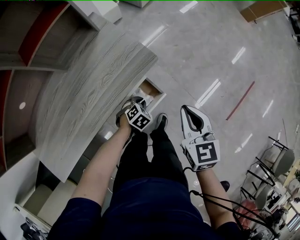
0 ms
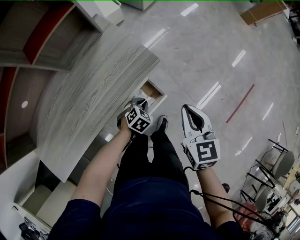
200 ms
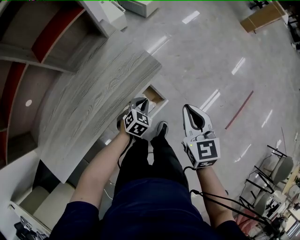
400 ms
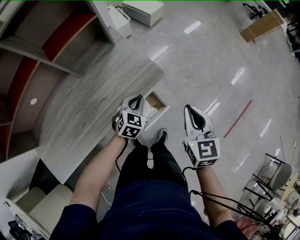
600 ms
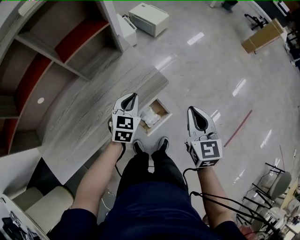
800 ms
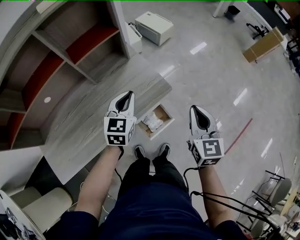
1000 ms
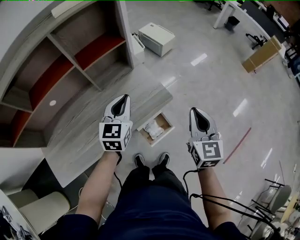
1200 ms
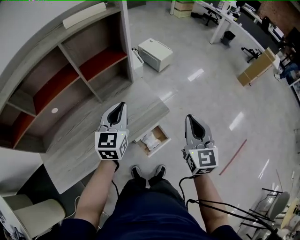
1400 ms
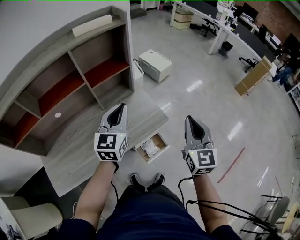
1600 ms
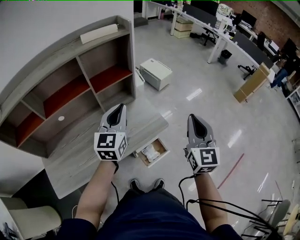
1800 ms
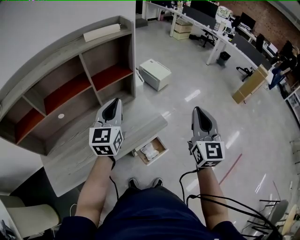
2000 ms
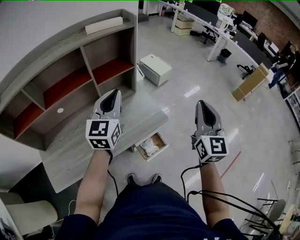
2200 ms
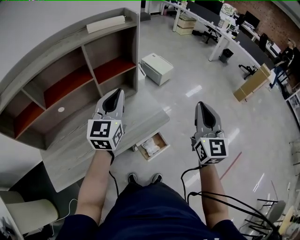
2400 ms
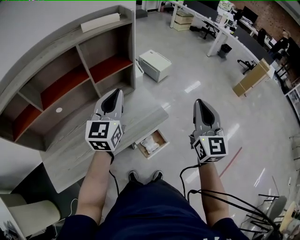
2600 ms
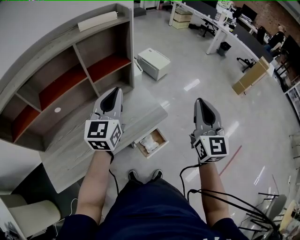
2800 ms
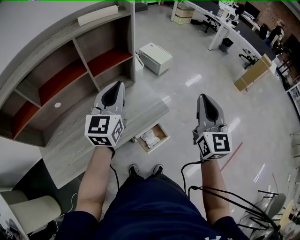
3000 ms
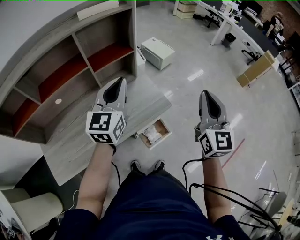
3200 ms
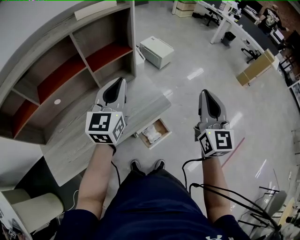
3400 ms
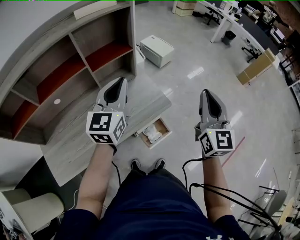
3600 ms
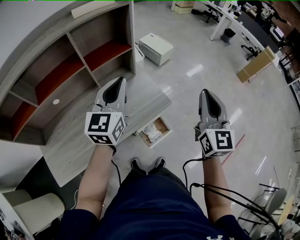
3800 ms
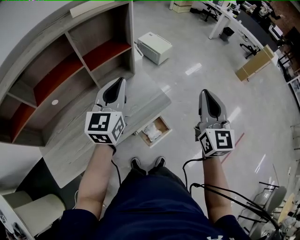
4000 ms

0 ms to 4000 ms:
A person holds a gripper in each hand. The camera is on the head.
0 ms to 1400 ms: The right gripper heads upward, covering about 20 cm, and changes its angle by about 30 degrees, while the left gripper is displaced upward by about 40 cm, and angles its fingers upward, by some 60 degrees.
1400 ms to 2600 ms: Both grippers move upward, roughly 10 cm.
2600 ms to 4000 ms: The grippers move only a little.

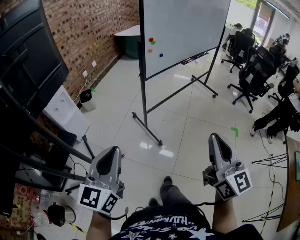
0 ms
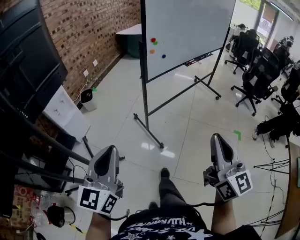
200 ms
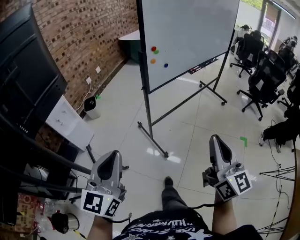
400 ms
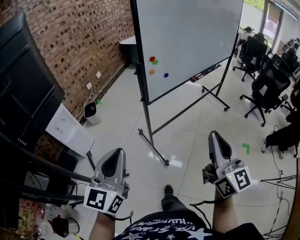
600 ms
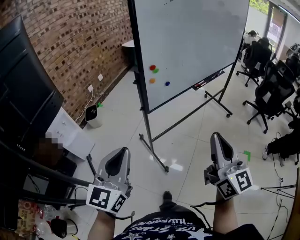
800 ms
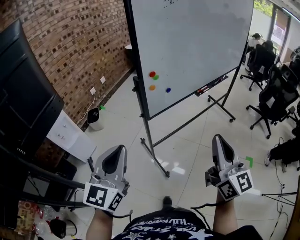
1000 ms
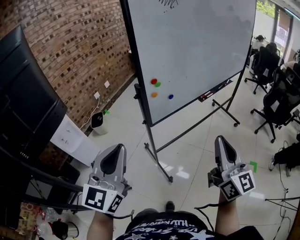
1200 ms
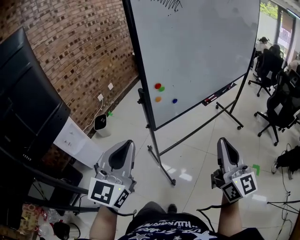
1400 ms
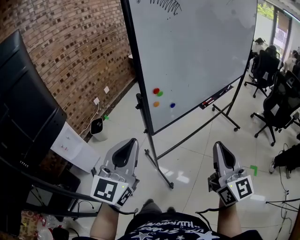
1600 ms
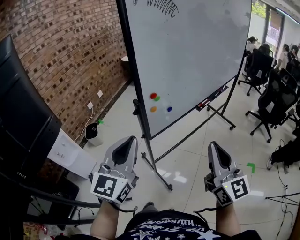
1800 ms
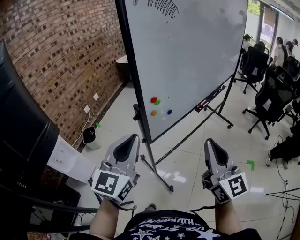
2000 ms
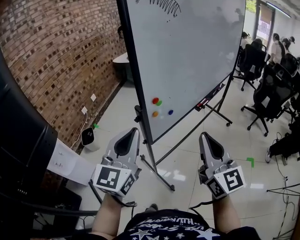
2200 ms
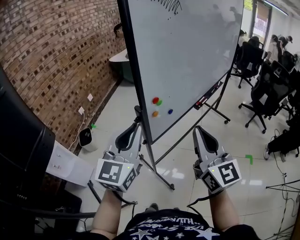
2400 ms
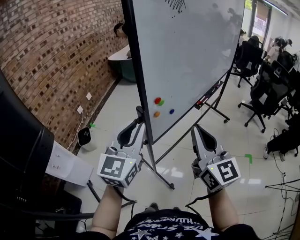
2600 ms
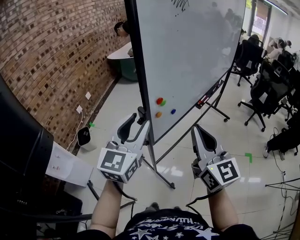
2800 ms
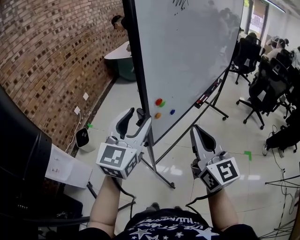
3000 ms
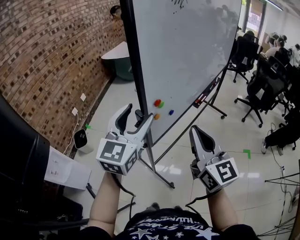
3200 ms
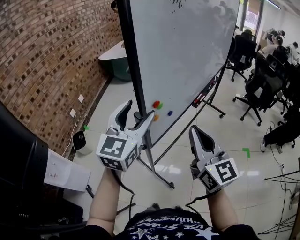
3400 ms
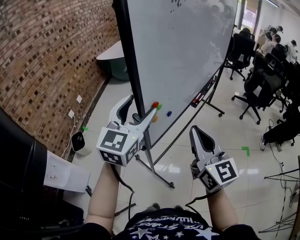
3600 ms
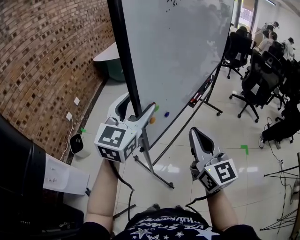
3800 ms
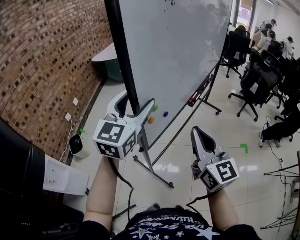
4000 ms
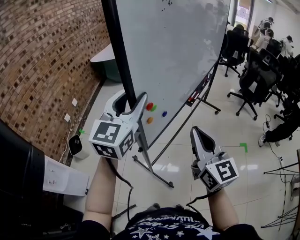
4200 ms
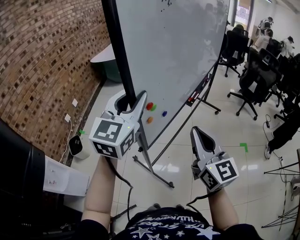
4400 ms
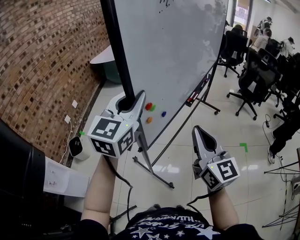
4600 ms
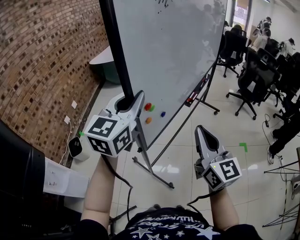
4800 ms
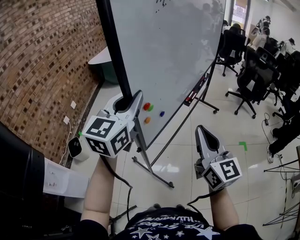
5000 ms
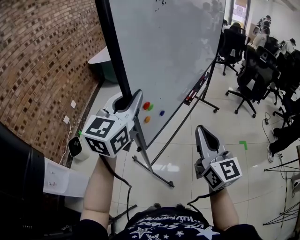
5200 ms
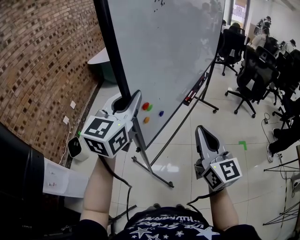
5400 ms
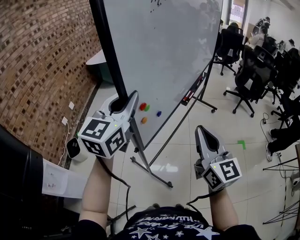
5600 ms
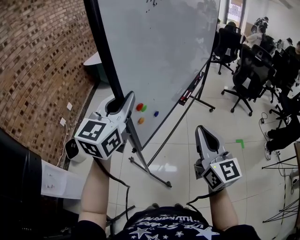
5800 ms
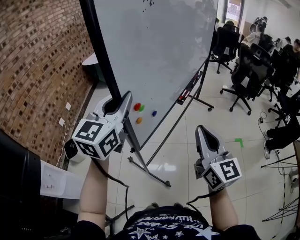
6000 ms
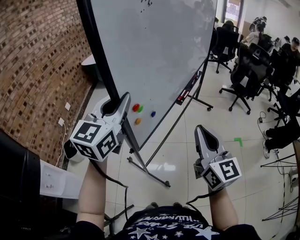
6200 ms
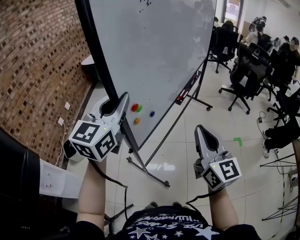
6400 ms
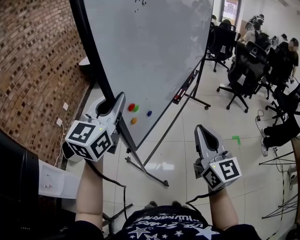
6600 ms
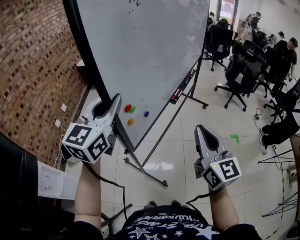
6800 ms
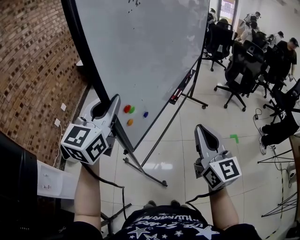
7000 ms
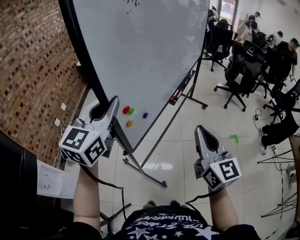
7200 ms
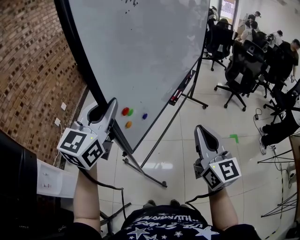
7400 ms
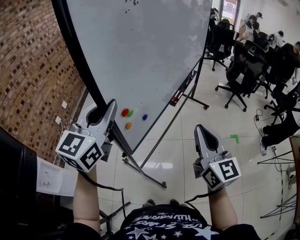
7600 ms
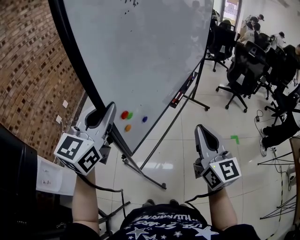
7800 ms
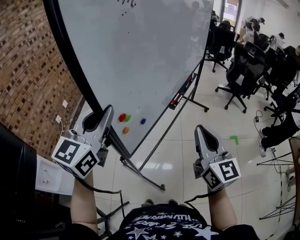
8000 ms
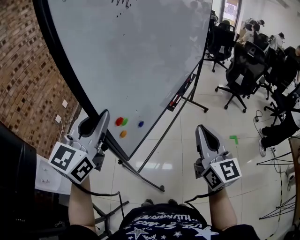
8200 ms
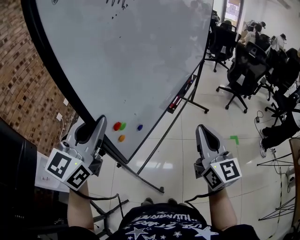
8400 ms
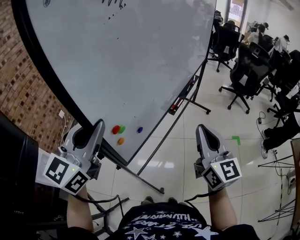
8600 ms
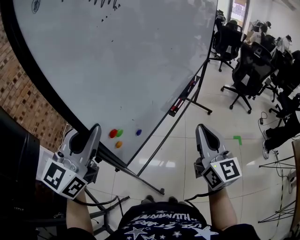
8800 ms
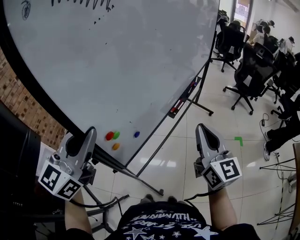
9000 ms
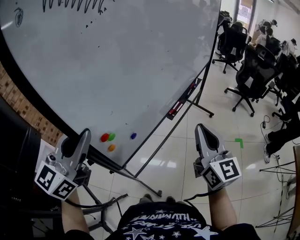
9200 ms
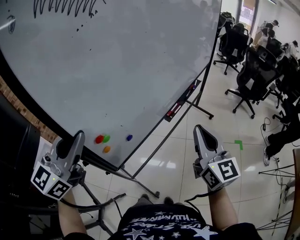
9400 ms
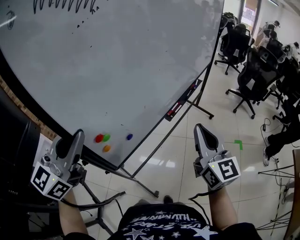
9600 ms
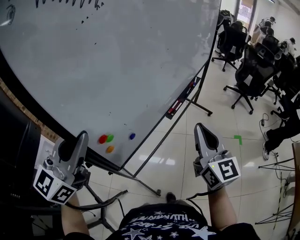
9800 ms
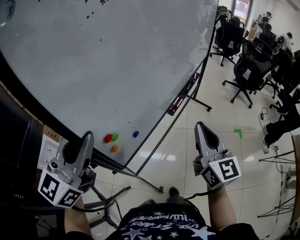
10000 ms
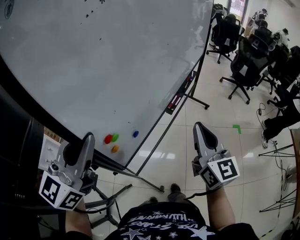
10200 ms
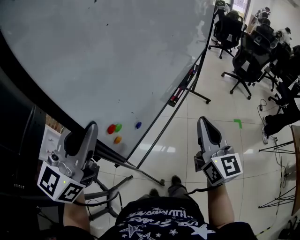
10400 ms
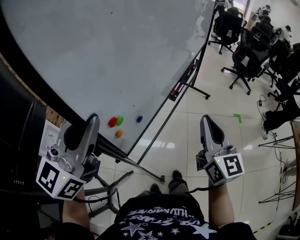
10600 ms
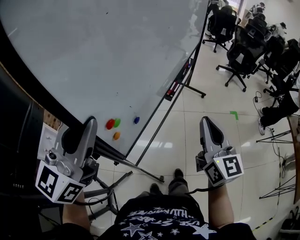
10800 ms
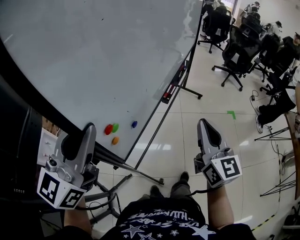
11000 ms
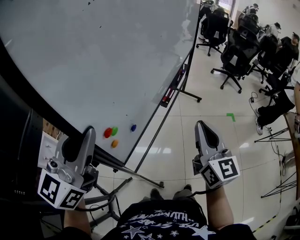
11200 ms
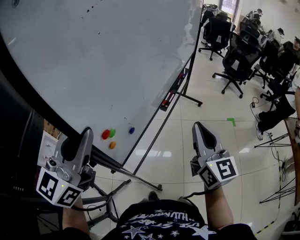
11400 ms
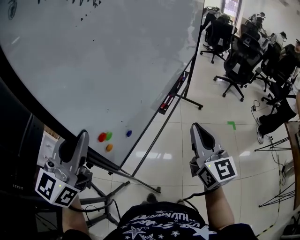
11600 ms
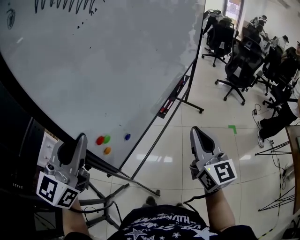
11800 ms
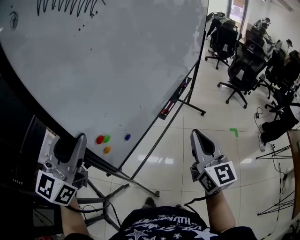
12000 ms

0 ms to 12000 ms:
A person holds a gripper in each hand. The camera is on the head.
0 ms to 1600 ms: The two grippers go some 30 cm forward.
1600 ms to 3000 ms: The left gripper is displaced forward by approximately 15 cm, and opens its fingers. Meanwhile the right gripper heads to the left and forward, covering approximately 15 cm.
3000 ms to 4400 ms: The left gripper goes roughly 5 cm forward.
4400 ms to 6000 ms: The grippers move only a little.
6000 ms to 7600 ms: The left gripper moves backward, about 5 cm.
7600 ms to 9000 ms: The left gripper heads backward, covering some 20 cm, while the right gripper goes roughly 5 cm backward.
9000 ms to 10400 ms: The right gripper changes place by roughly 5 cm.
10400 ms to 12000 ms: The left gripper opens up.

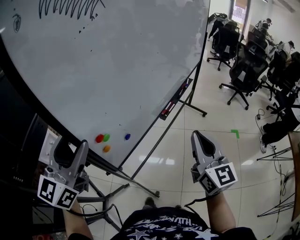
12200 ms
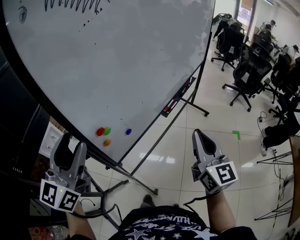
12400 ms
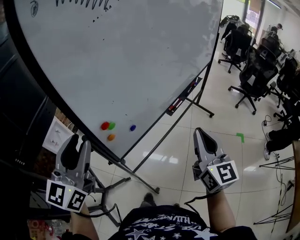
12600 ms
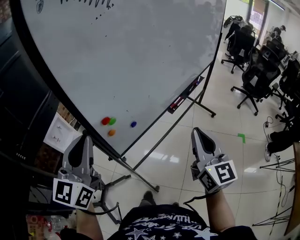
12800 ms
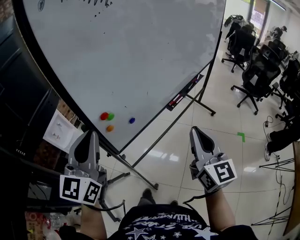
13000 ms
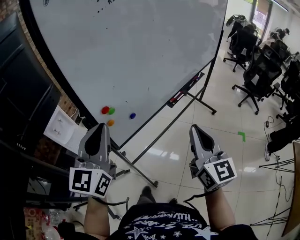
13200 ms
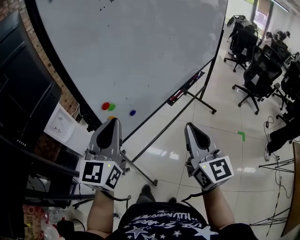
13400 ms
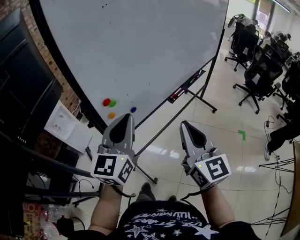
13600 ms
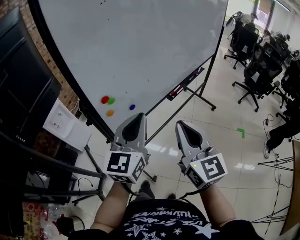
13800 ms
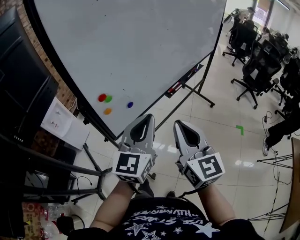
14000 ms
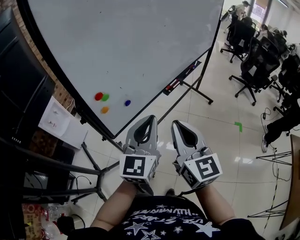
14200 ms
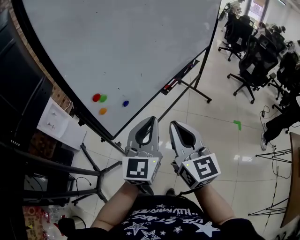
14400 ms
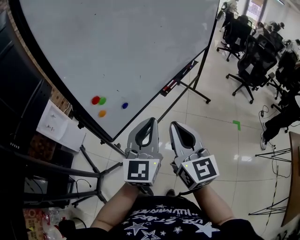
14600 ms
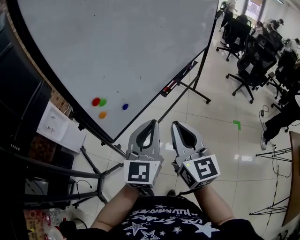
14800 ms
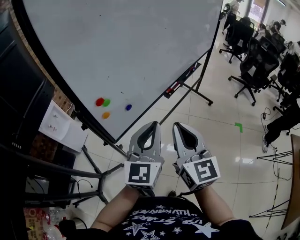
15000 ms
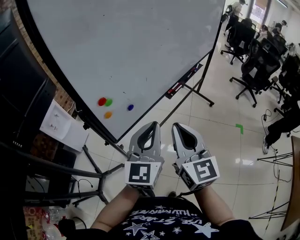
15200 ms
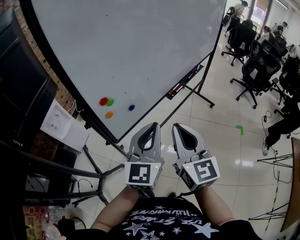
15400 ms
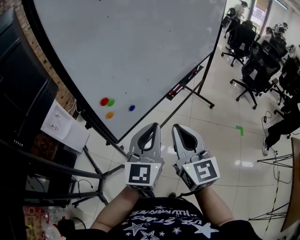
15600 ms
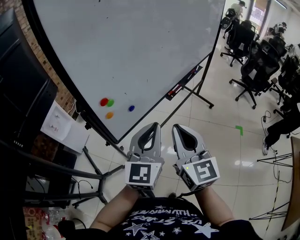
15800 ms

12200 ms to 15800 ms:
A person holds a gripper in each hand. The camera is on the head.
12200 ms to 14000 ms: The left gripper travels to the right and downward by approximately 20 cm, and closes. The right gripper moves to the left, about 5 cm.
14000 ms to 15800 ms: The grippers move only a little.

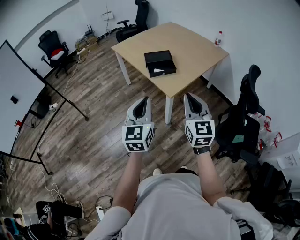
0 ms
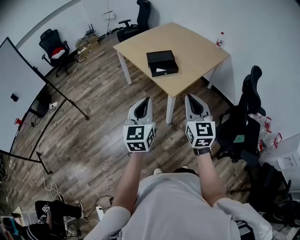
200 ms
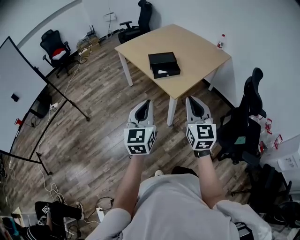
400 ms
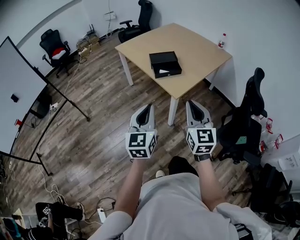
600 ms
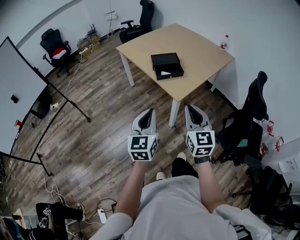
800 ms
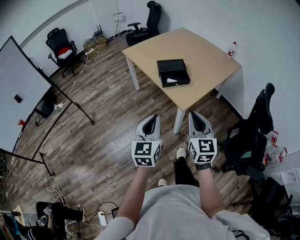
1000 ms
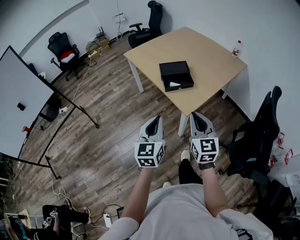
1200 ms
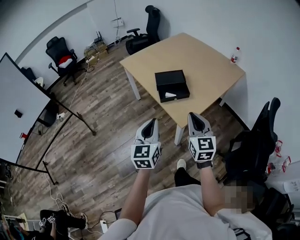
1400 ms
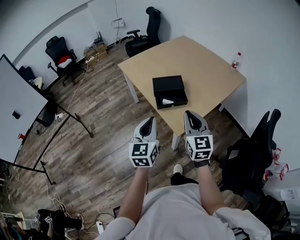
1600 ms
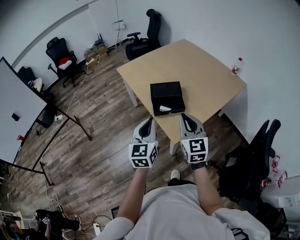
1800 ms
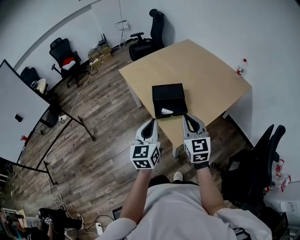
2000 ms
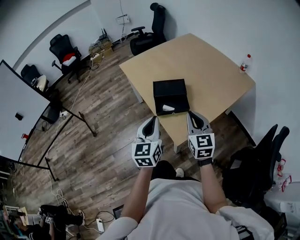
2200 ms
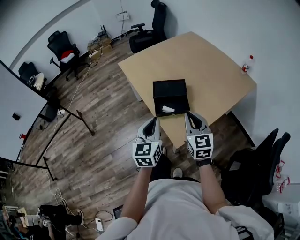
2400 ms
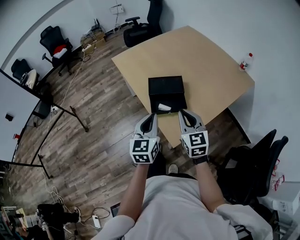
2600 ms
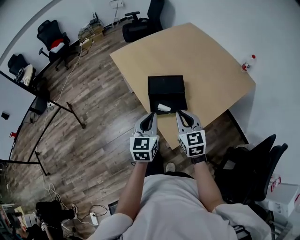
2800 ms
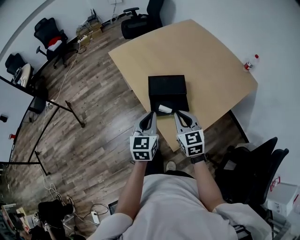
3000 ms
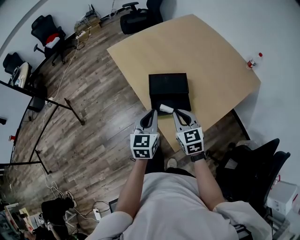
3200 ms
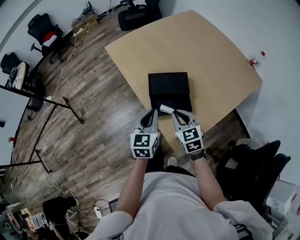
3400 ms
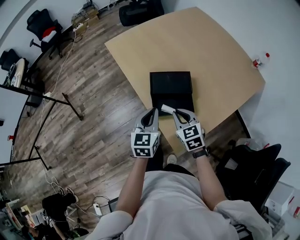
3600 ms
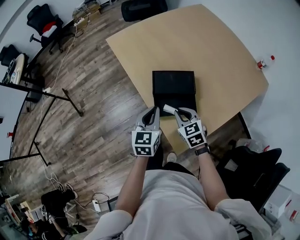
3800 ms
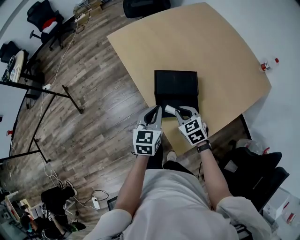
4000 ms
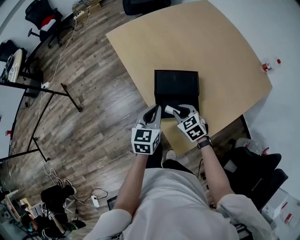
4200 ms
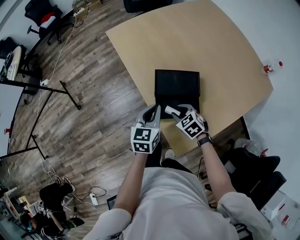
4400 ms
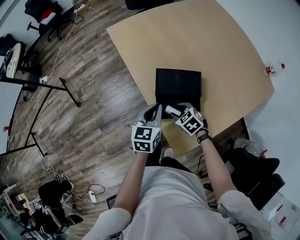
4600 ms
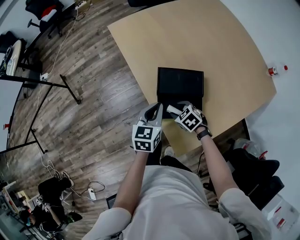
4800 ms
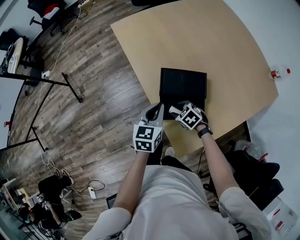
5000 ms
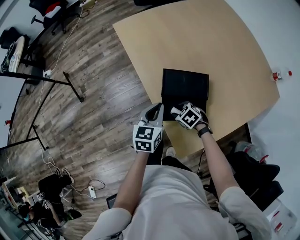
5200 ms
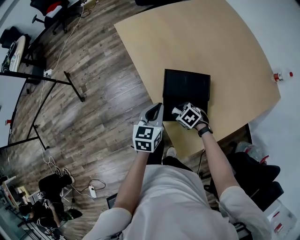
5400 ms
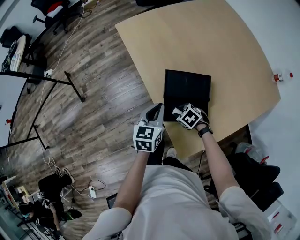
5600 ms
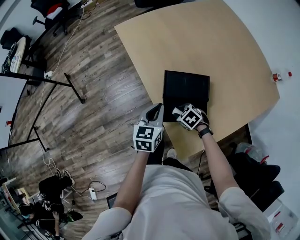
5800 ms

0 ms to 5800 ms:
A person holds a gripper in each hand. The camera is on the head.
0 ms to 1400 ms: The grippers both shift forward by roughly 15 cm.
1400 ms to 2800 ms: The two grippers go some 20 cm forward.
2800 ms to 4400 ms: The left gripper is displaced forward and downward by approximately 15 cm. The right gripper moves downward and forward, some 25 cm, points its fingers approximately 40 degrees further downward, and opens up.
4400 ms to 5800 ms: The right gripper goes approximately 5 cm downward.
